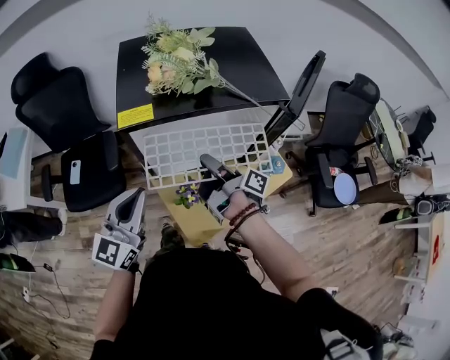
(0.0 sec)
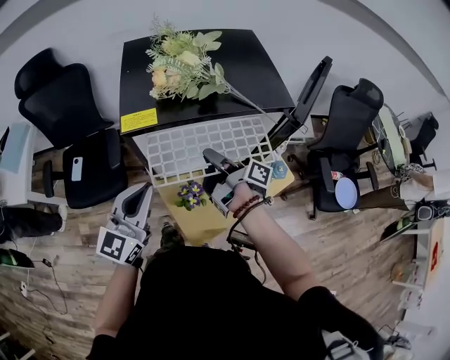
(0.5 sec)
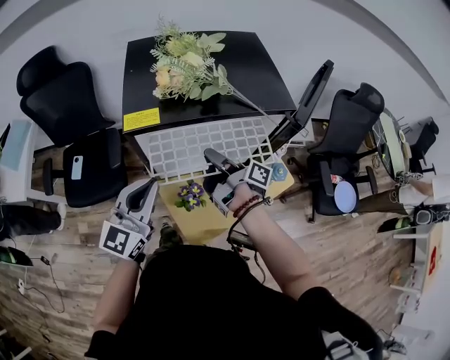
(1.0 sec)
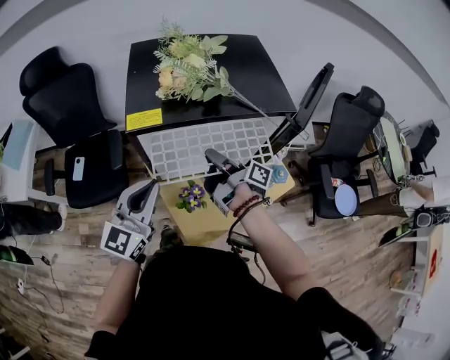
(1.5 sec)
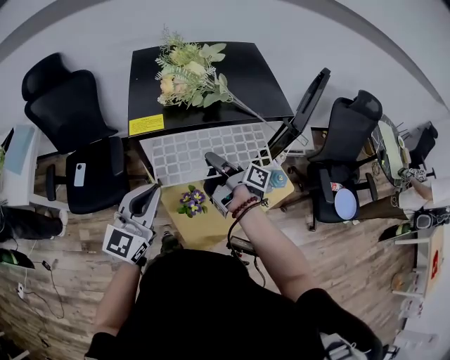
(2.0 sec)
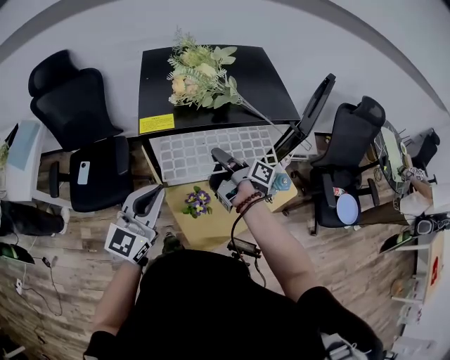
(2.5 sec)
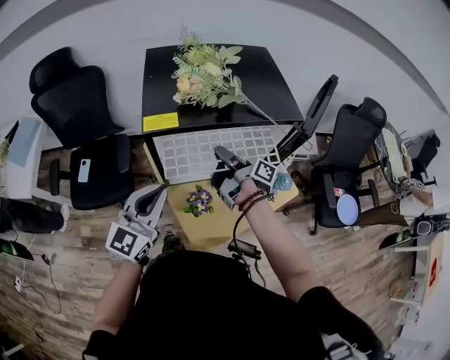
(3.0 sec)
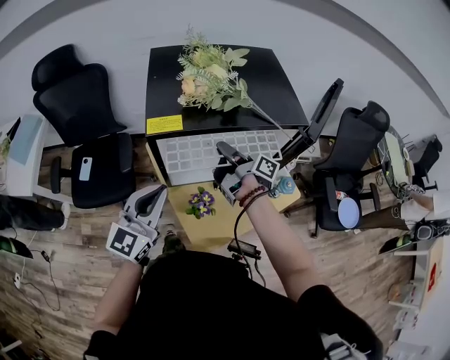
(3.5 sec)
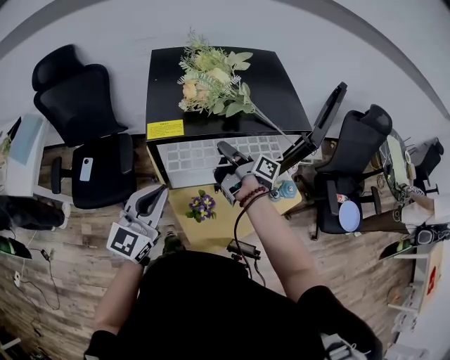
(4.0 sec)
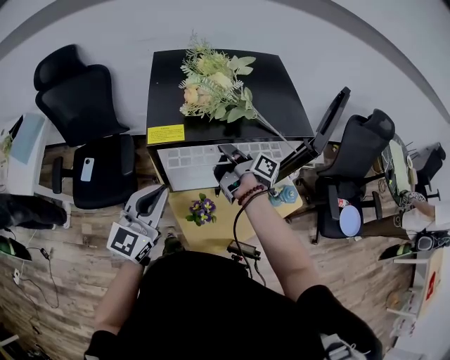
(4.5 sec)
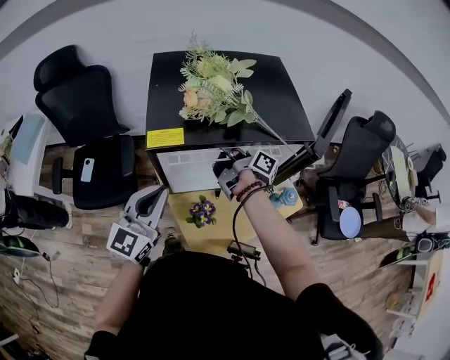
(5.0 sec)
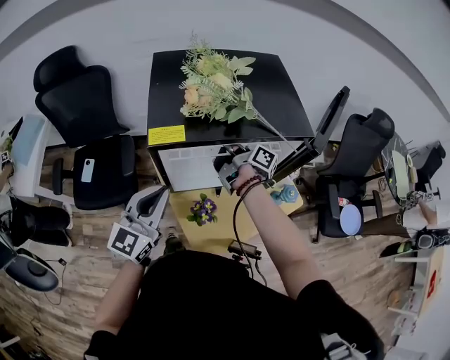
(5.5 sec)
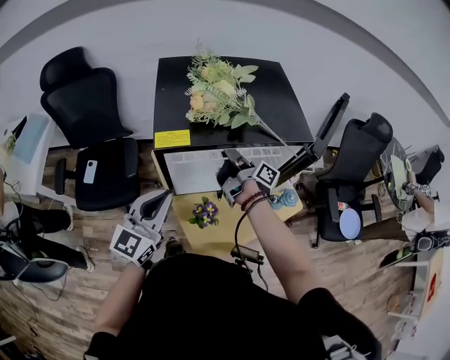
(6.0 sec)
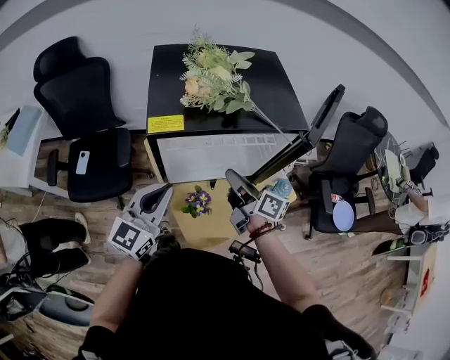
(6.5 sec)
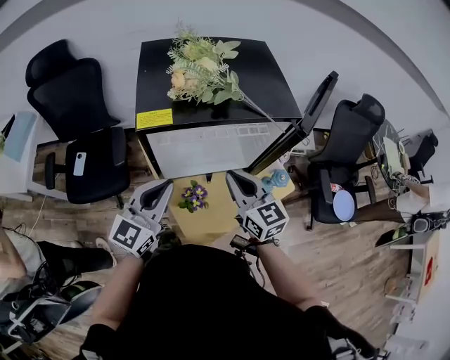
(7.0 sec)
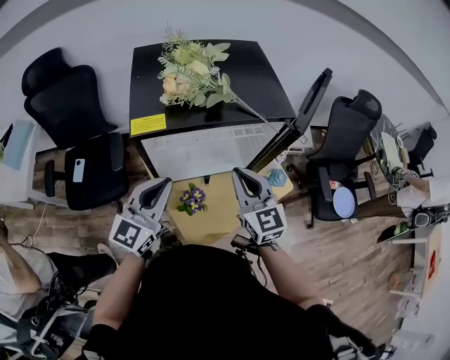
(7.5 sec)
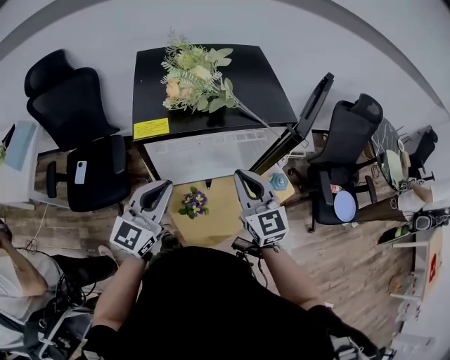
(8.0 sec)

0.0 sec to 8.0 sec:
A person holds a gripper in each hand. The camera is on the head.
0.0 sec to 2.0 sec: There are only small adjustments of the grippers.
2.0 sec to 4.0 sec: The right gripper is displaced forward by some 5 cm.
4.0 sec to 6.0 sec: The right gripper opens up.
6.0 sec to 8.0 sec: The right gripper is displaced backward and upward by roughly 15 cm, rolls counterclockwise, seen from behind, by some 100 degrees, and closes its fingers.

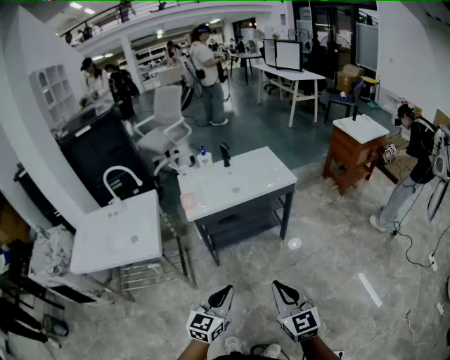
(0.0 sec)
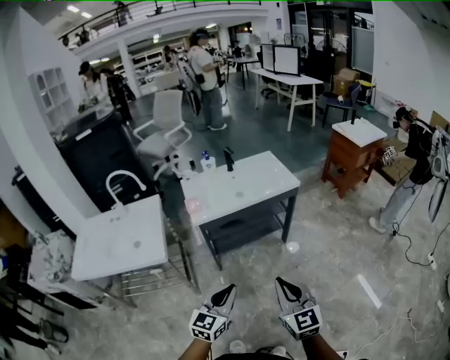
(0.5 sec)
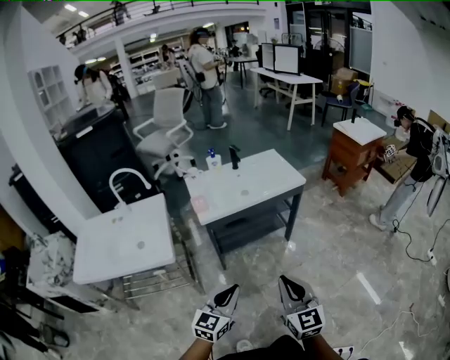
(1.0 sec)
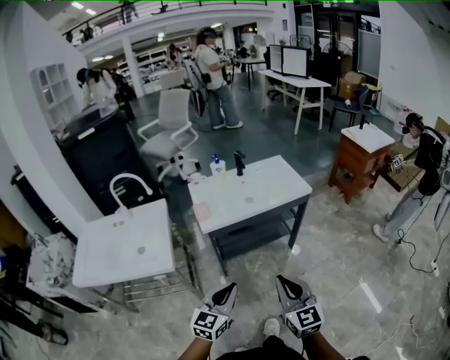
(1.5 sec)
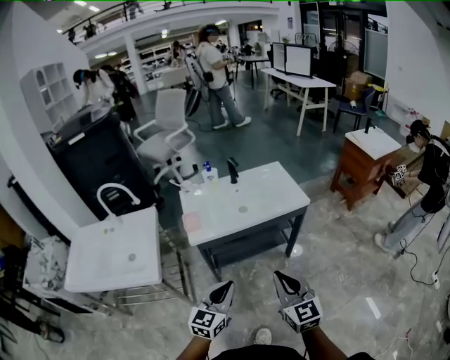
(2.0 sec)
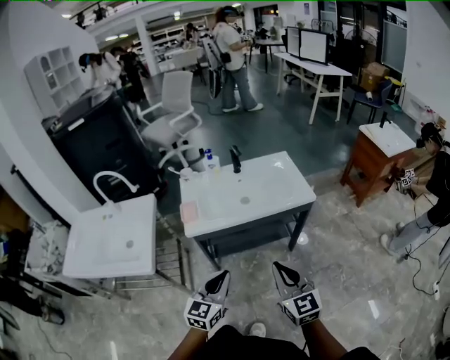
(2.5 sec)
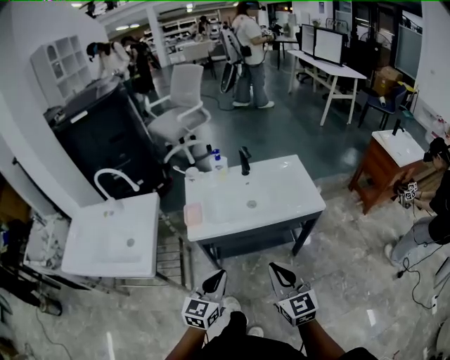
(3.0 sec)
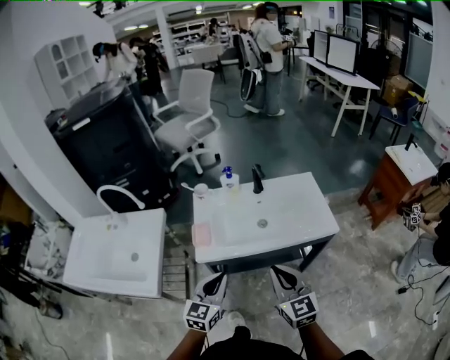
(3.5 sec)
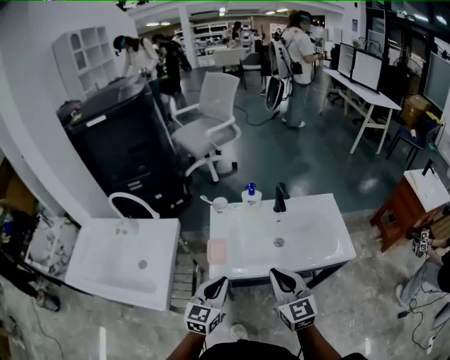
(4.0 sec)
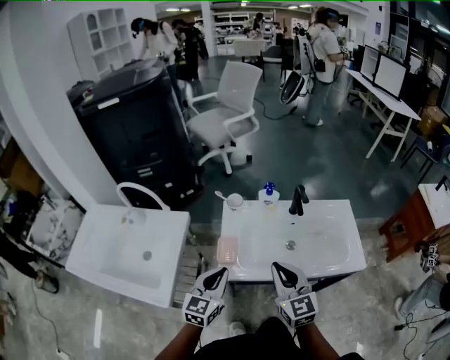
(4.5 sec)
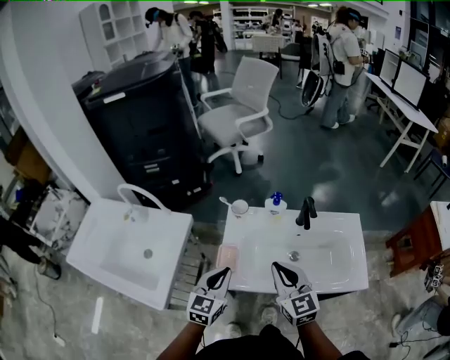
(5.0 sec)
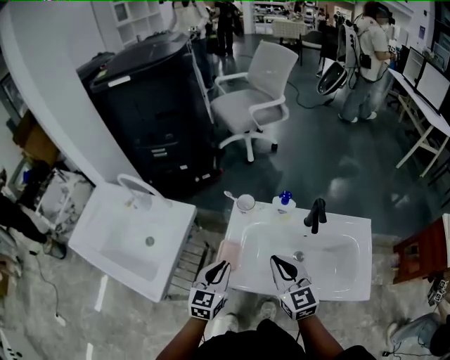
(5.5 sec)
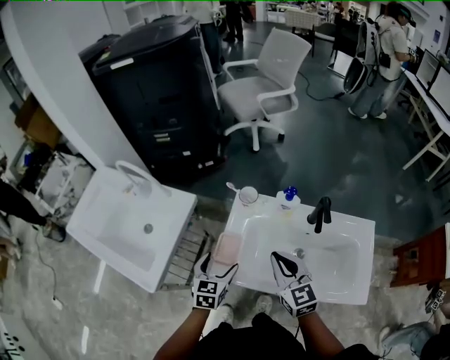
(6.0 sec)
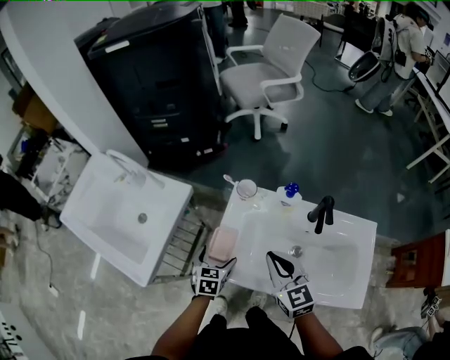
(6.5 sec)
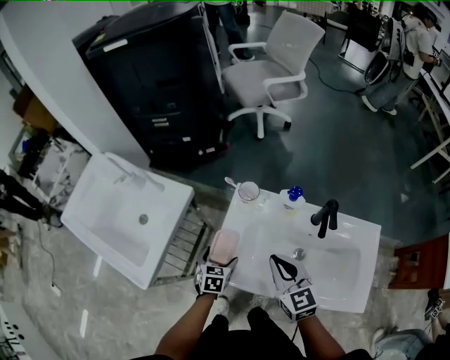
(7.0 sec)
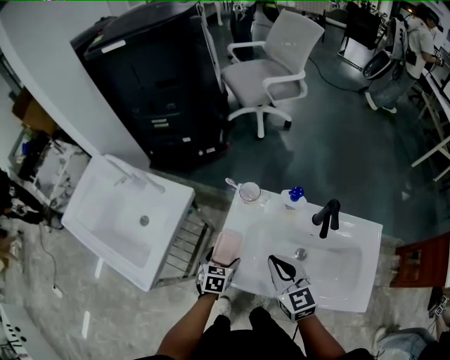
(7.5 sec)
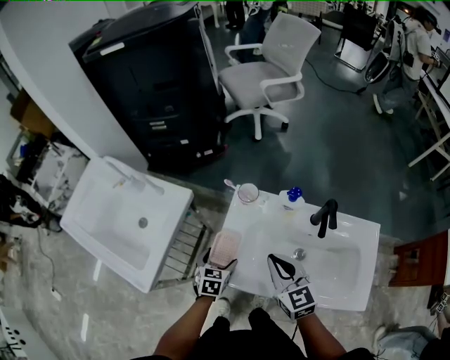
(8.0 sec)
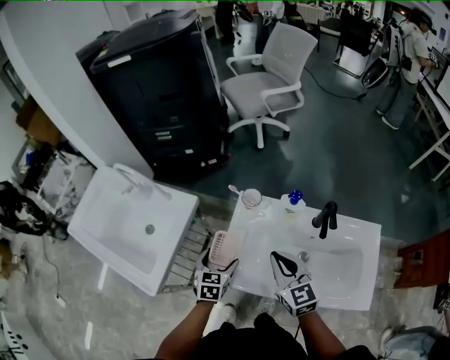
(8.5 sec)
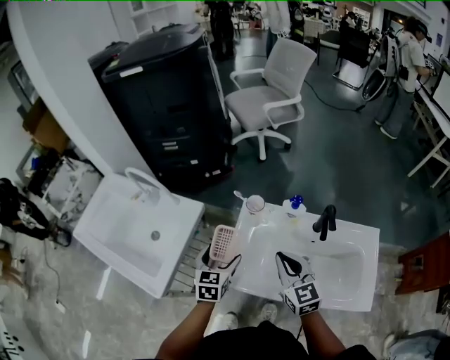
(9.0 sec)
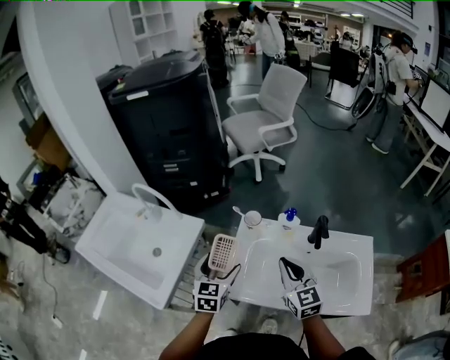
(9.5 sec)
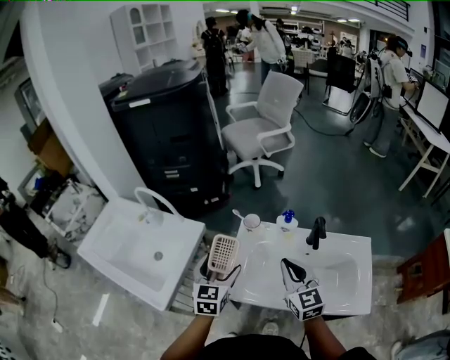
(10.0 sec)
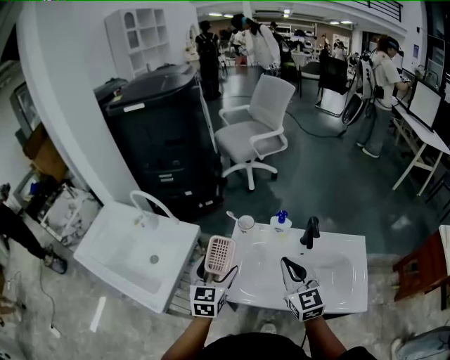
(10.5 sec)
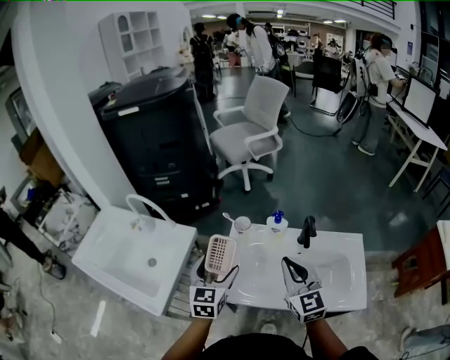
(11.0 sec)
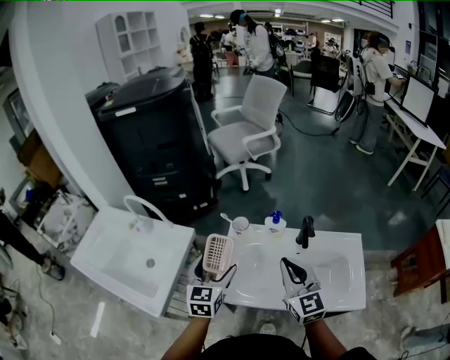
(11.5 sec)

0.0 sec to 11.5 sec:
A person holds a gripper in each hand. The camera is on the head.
0.0 sec to 2.0 sec: The two grippers go some 15 cm forward.
2.0 sec to 4.0 sec: Both grippers move forward, roughly 25 cm.
4.0 sec to 6.0 sec: The right gripper moves forward, some 15 cm, and turns by some 20 degrees; the left gripper is displaced forward and downward by about 15 cm, turns by some 30 degrees, and opens.
6.0 sec to 7.5 sec: The left gripper heads downward, covering roughly 10 cm.
7.5 sec to 9.5 sec: The left gripper travels upward by roughly 20 cm, and turns by some 30 degrees. Meanwhile the right gripper moves upward, about 5 cm.
9.5 sec to 11.5 sec: Both grippers move upward, about 5 cm.

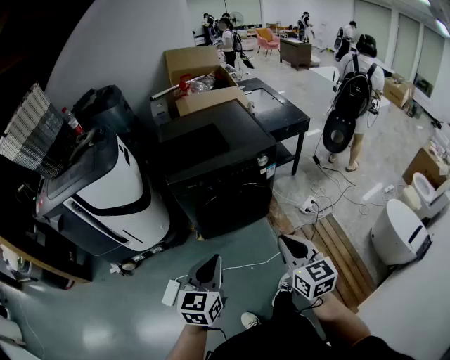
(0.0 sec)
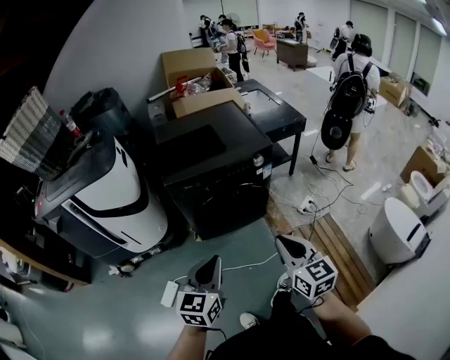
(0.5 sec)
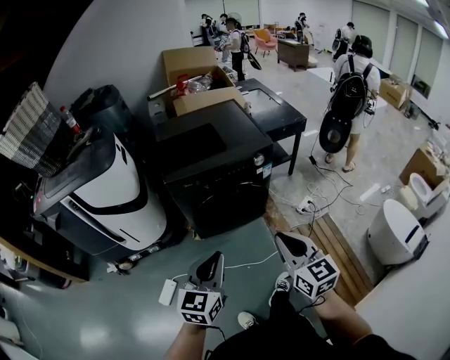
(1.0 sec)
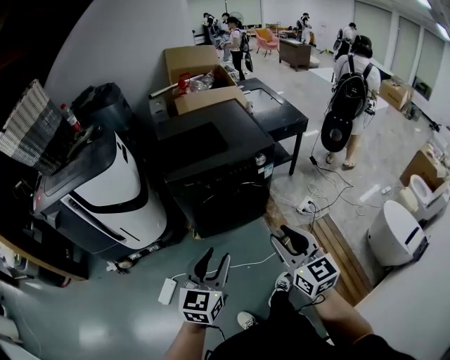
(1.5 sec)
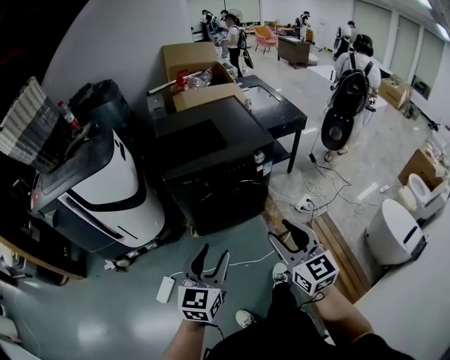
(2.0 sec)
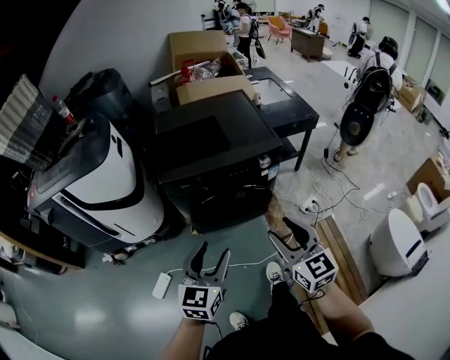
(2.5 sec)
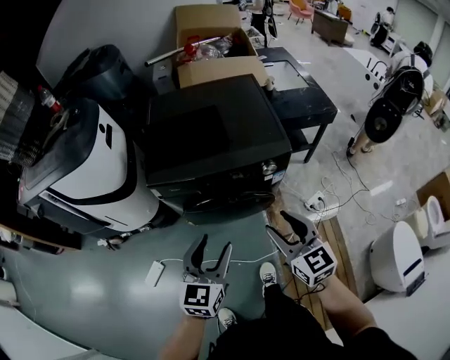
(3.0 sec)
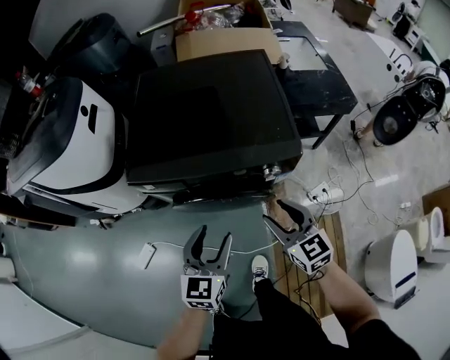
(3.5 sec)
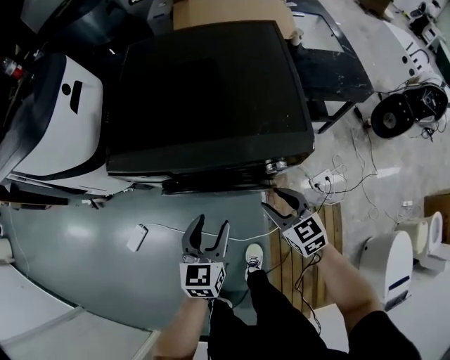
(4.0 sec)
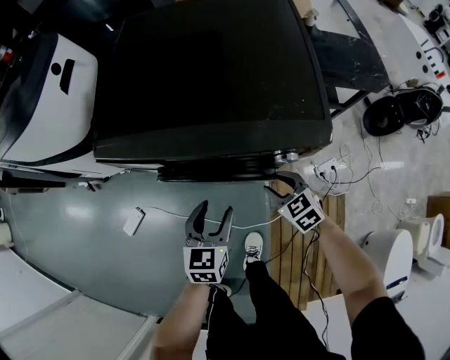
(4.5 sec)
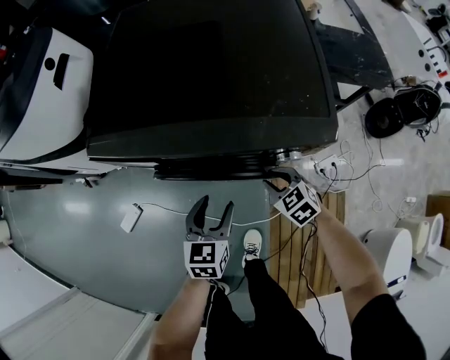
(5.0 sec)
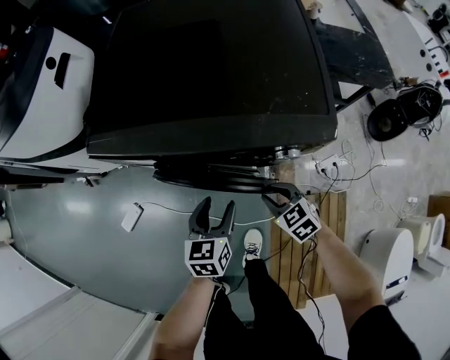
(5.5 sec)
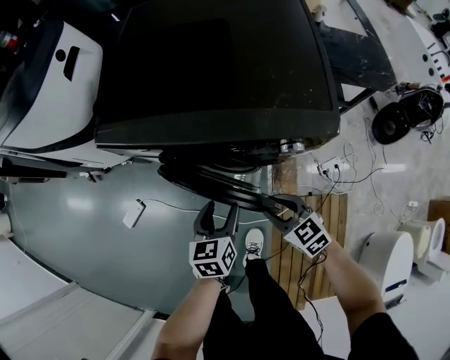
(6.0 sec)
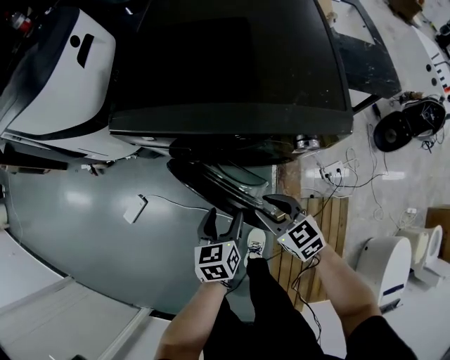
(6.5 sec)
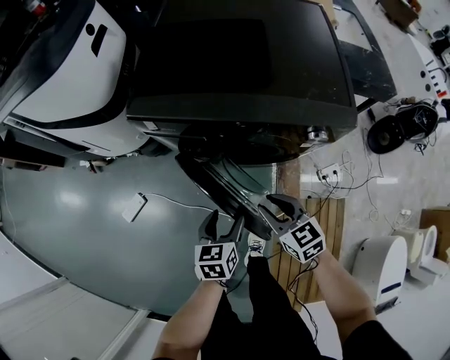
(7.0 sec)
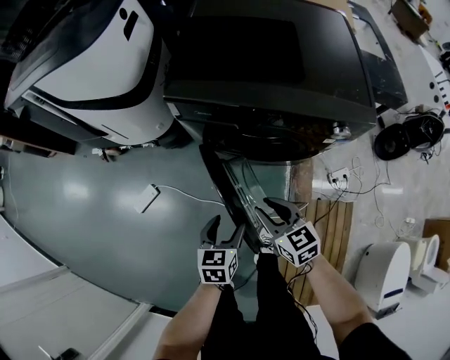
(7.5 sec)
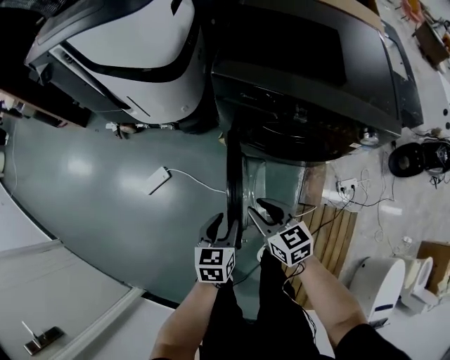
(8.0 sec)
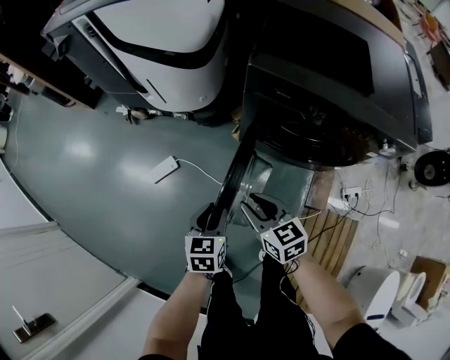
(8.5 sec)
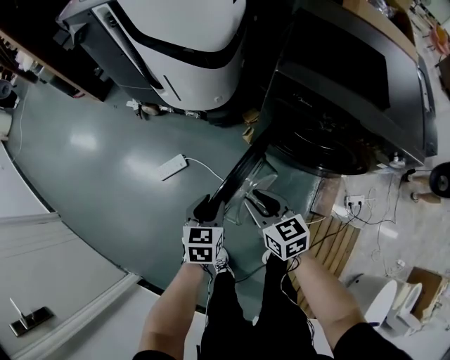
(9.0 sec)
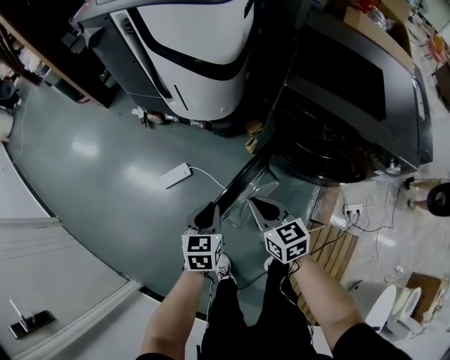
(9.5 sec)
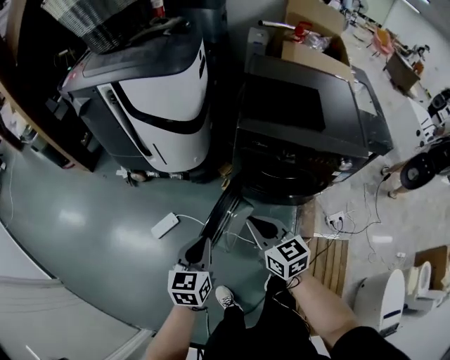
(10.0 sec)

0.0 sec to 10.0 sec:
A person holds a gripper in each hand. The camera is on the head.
0.0 sec to 2.0 sec: The right gripper opens its fingers. Meanwhile the left gripper opens up.
2.0 sec to 4.0 sec: The right gripper heads forward and downward, covering about 50 cm, and turns by about 40 degrees. Meanwhile the left gripper moves forward, downward and to the right, some 40 cm, and turns by about 30 degrees.
4.0 sec to 6.0 sec: The right gripper goes approximately 10 cm downward and backward. The left gripper moves downward, roughly 10 cm.
6.0 sec to 8.0 sec: Both grippers travel together to the left, some 30 cm.
8.0 sec to 10.0 sec: Both grippers move upward and to the left, about 25 cm. The left gripper closes. The right gripper closes its fingers.
